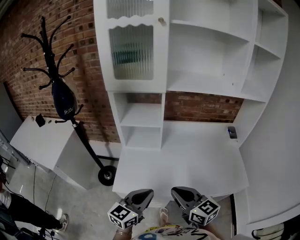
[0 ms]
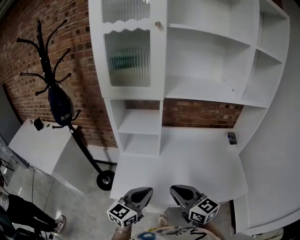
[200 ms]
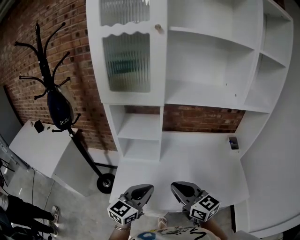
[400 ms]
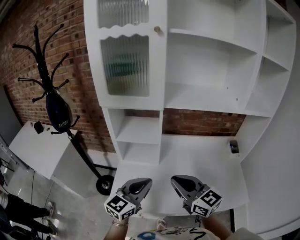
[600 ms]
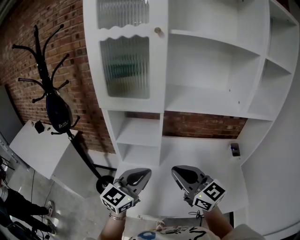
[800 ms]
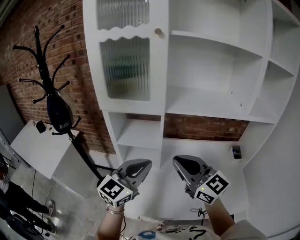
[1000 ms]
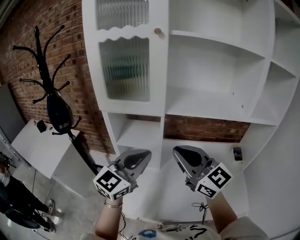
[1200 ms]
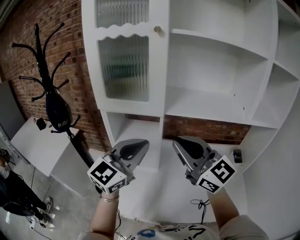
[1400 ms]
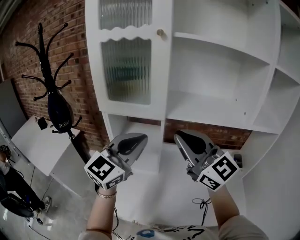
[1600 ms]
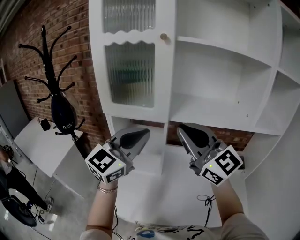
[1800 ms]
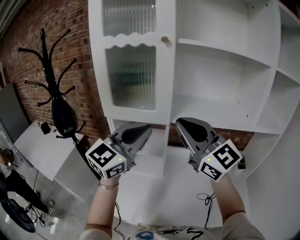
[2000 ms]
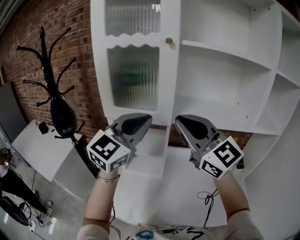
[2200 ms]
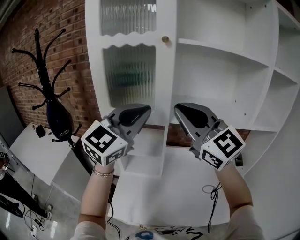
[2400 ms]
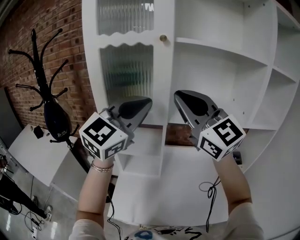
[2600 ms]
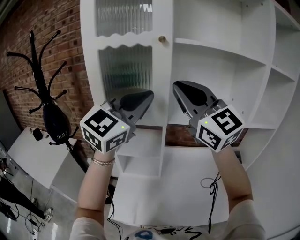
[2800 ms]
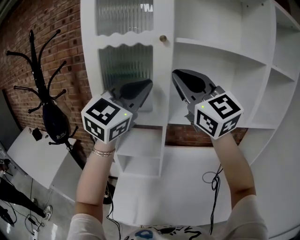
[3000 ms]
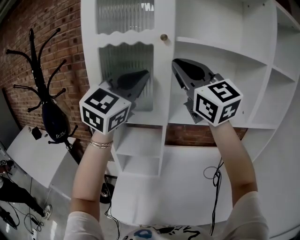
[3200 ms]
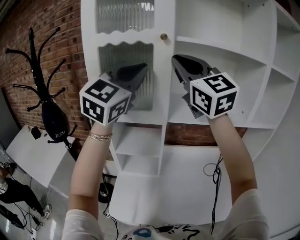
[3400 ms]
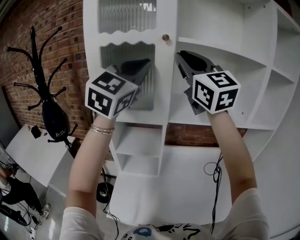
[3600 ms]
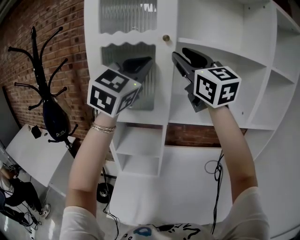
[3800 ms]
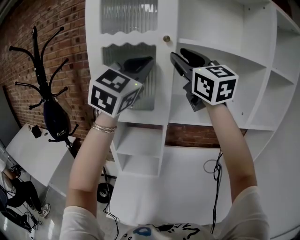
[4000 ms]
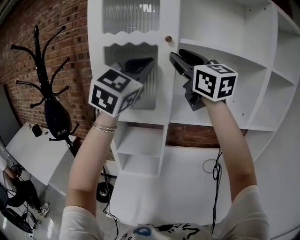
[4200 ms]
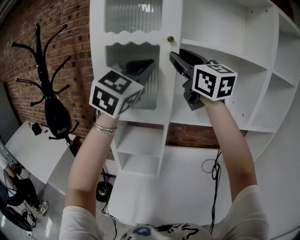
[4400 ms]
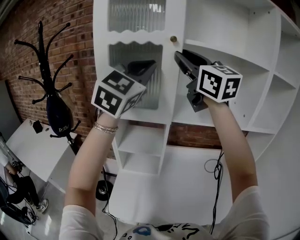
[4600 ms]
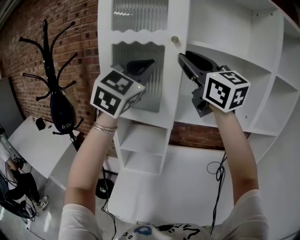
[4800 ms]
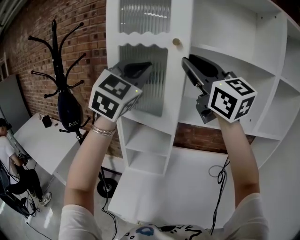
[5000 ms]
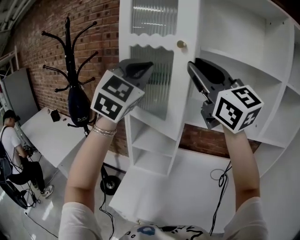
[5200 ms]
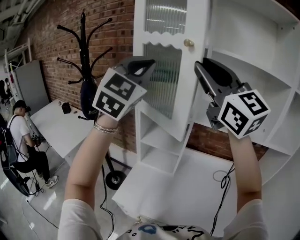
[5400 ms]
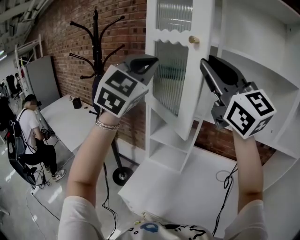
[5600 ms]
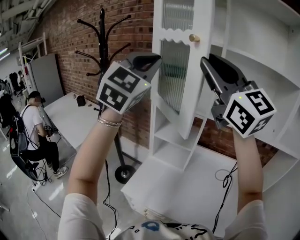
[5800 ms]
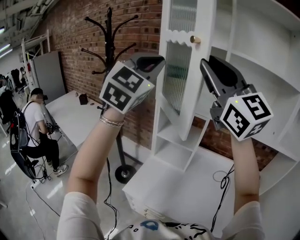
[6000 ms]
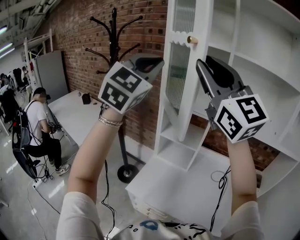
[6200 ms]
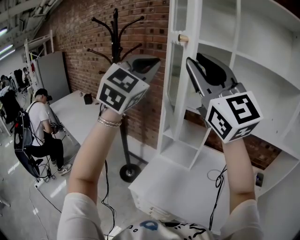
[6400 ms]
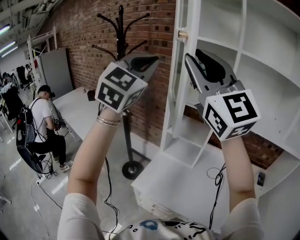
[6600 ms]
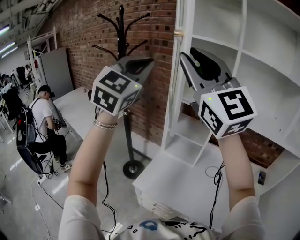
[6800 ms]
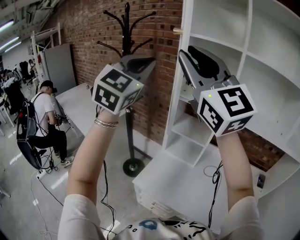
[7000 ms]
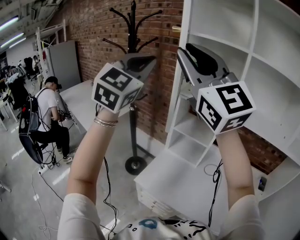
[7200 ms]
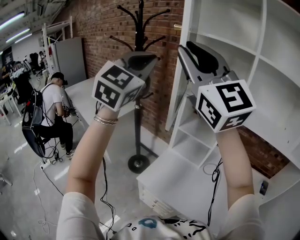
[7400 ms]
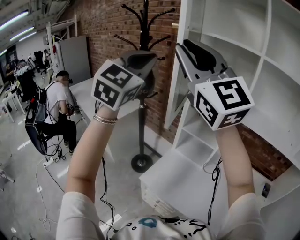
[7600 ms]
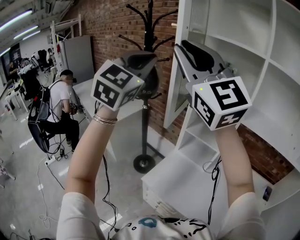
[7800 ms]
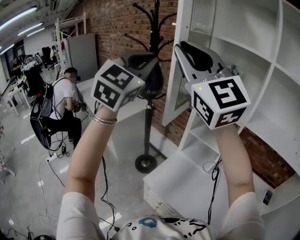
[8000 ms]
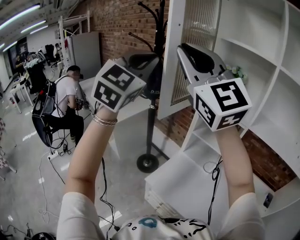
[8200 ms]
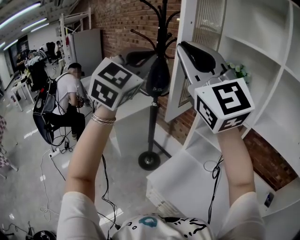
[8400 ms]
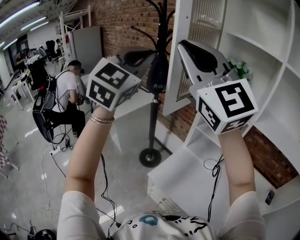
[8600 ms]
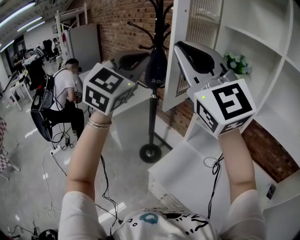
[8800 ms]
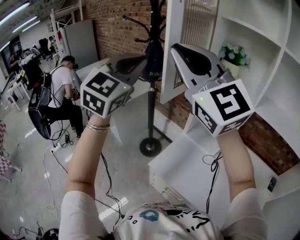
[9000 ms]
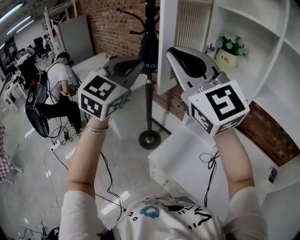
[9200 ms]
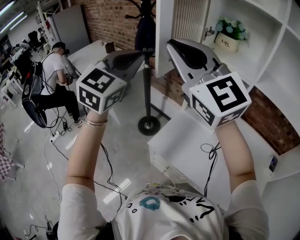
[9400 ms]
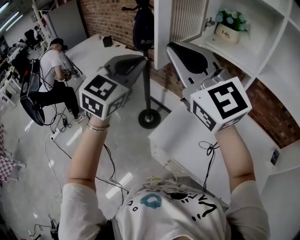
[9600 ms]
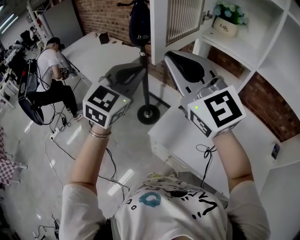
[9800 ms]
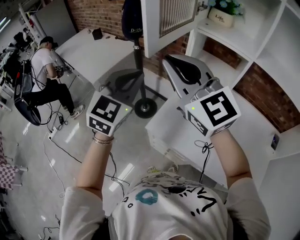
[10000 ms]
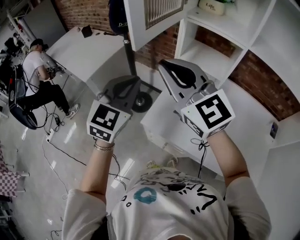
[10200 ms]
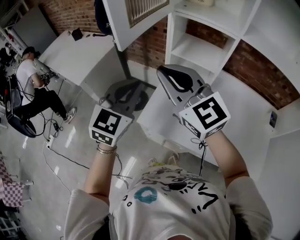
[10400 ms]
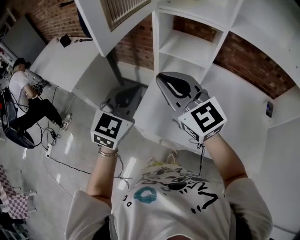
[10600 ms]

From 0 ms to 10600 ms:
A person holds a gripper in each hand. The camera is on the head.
From 0 ms to 1600 ms: The right gripper shifts roughly 35 cm upward and forward, and swivels some 40 degrees. The left gripper moves forward and upward, some 35 cm, and rotates about 30 degrees.
From 1600 ms to 3000 ms: The two grippers go roughly 20 cm upward and forward.
From 3000 ms to 4600 ms: The left gripper shifts by approximately 5 cm; the right gripper goes about 5 cm forward, and opens.
From 4600 ms to 6000 ms: The right gripper heads backward and to the left, covering roughly 20 cm, and swivels about 20 degrees. The left gripper heads to the left and backward, covering some 15 cm, and changes its angle by approximately 20 degrees.
From 6000 ms to 7600 ms: Both grippers move to the left, approximately 15 cm.
From 7600 ms to 9000 ms: Both grippers travel together downward and to the left, roughly 10 cm.
From 9000 ms to 10600 ms: Both grippers move downward and to the right, about 30 cm. The right gripper turns by approximately 30 degrees; the left gripper turns by some 30 degrees.

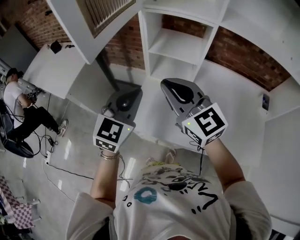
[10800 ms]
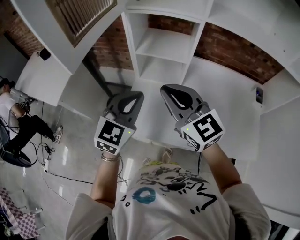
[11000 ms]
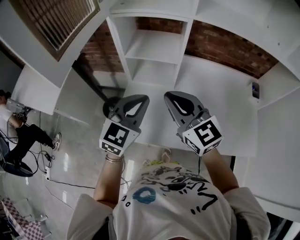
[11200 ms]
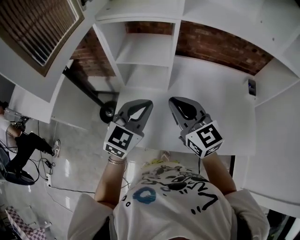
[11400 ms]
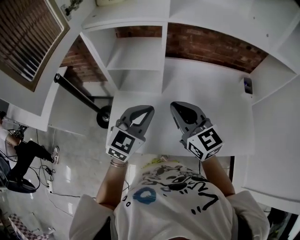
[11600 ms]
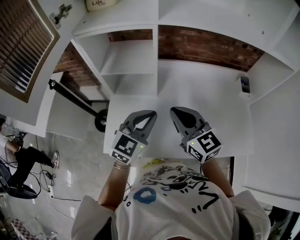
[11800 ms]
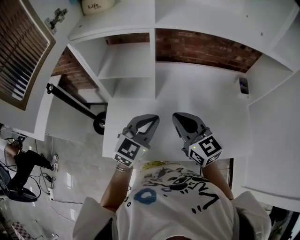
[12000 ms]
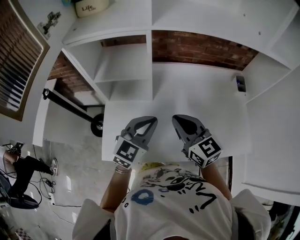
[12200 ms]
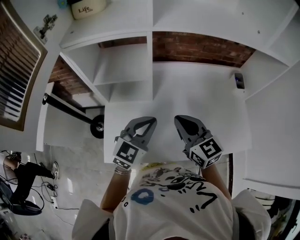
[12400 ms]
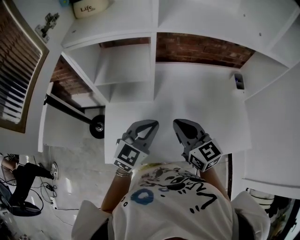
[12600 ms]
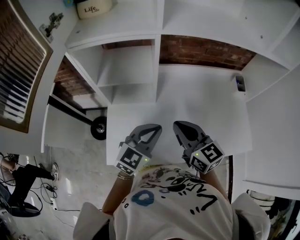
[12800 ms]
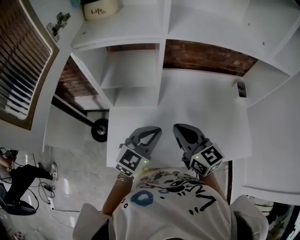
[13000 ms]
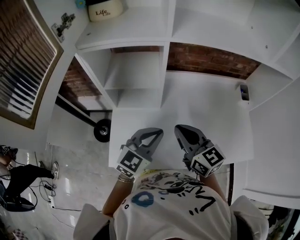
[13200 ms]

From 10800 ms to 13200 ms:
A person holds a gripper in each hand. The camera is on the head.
From 10800 ms to 12000 ms: The two grippers go some 25 cm to the right and downward. The right gripper changes its angle by some 30 degrees; the left gripper swivels about 30 degrees.
From 12000 ms to 13200 ms: There are only small adjustments of the grippers.

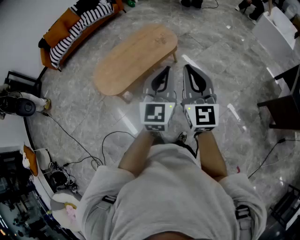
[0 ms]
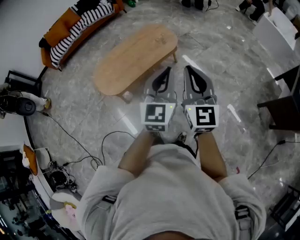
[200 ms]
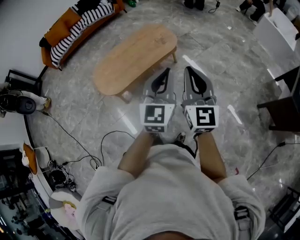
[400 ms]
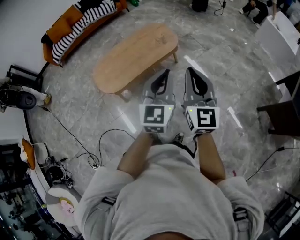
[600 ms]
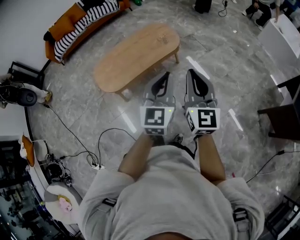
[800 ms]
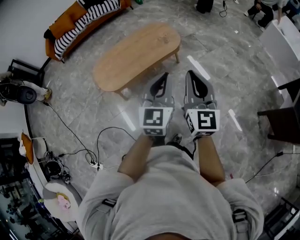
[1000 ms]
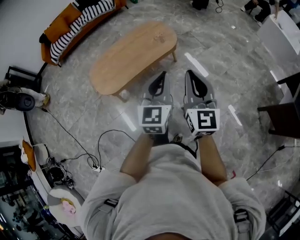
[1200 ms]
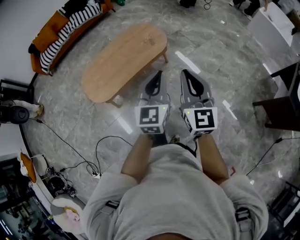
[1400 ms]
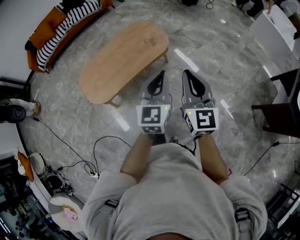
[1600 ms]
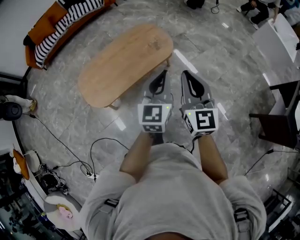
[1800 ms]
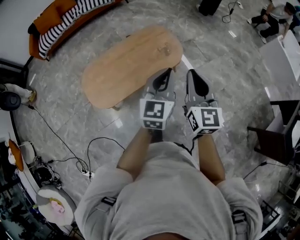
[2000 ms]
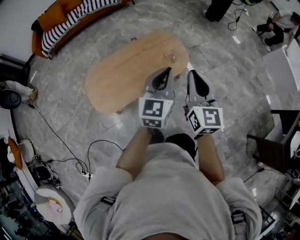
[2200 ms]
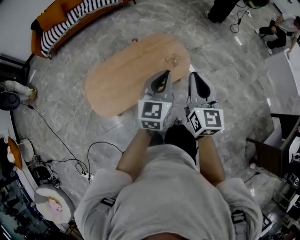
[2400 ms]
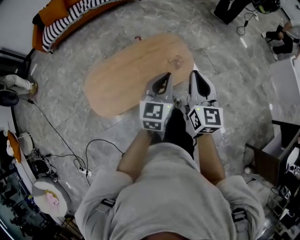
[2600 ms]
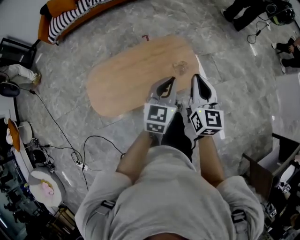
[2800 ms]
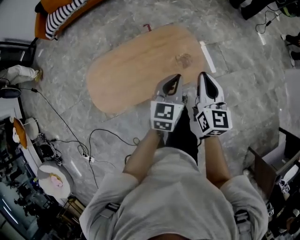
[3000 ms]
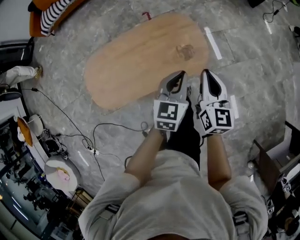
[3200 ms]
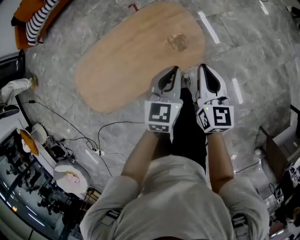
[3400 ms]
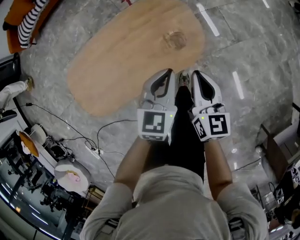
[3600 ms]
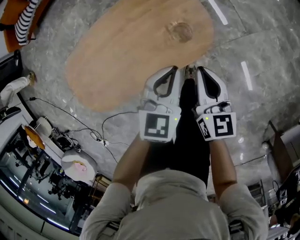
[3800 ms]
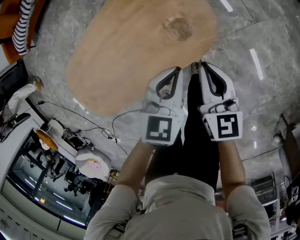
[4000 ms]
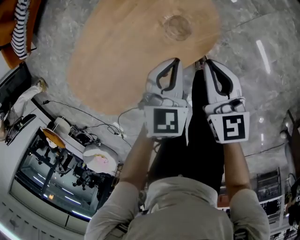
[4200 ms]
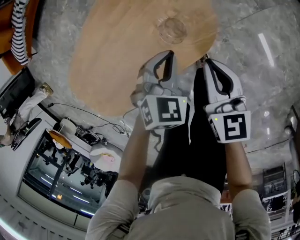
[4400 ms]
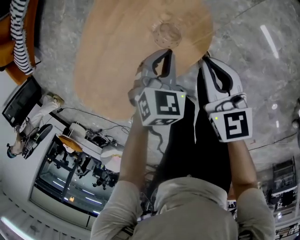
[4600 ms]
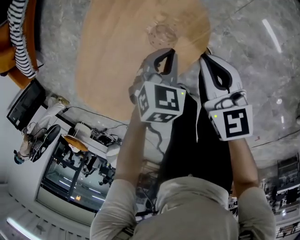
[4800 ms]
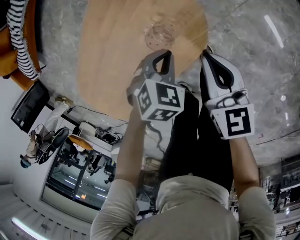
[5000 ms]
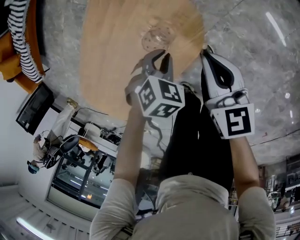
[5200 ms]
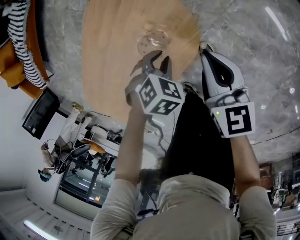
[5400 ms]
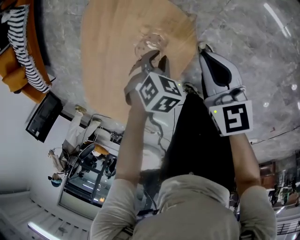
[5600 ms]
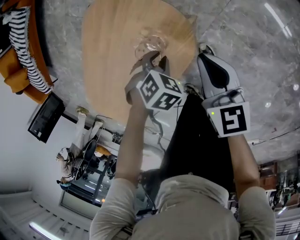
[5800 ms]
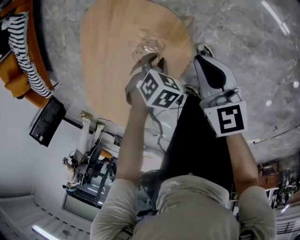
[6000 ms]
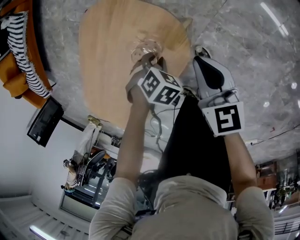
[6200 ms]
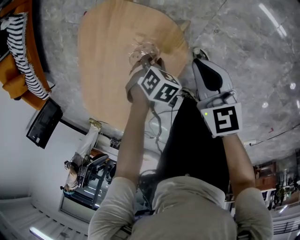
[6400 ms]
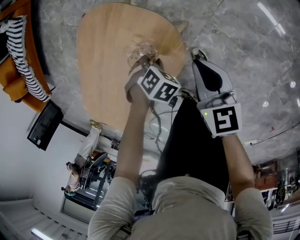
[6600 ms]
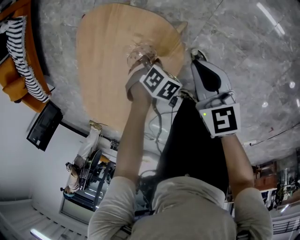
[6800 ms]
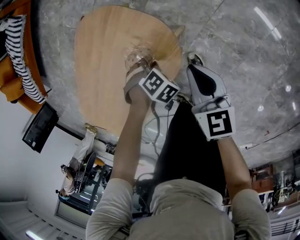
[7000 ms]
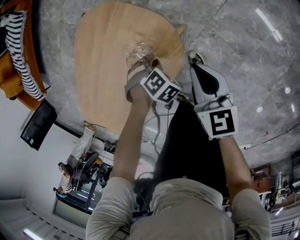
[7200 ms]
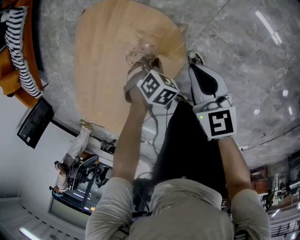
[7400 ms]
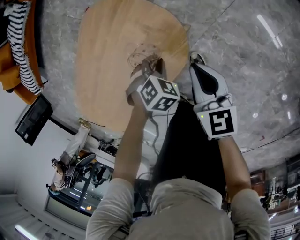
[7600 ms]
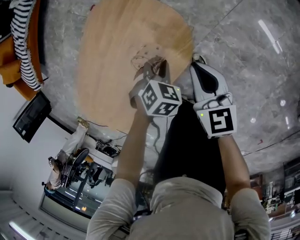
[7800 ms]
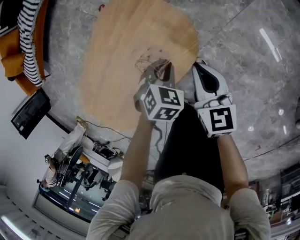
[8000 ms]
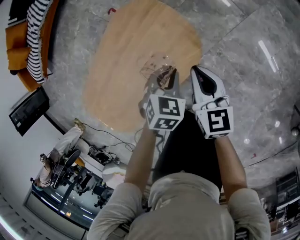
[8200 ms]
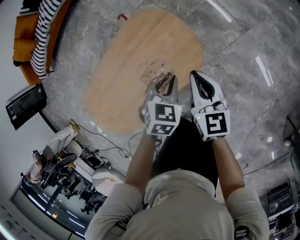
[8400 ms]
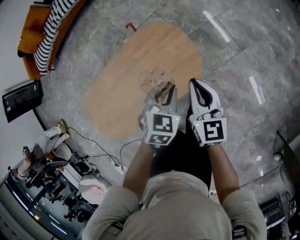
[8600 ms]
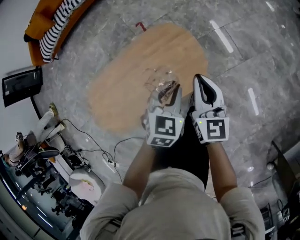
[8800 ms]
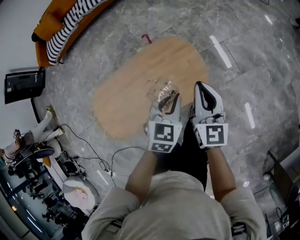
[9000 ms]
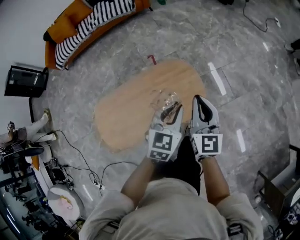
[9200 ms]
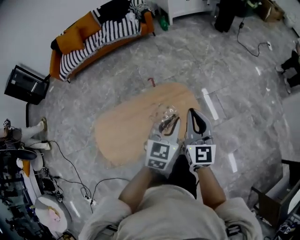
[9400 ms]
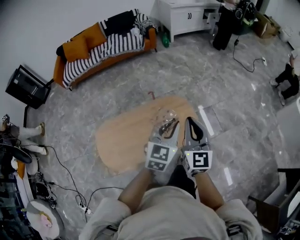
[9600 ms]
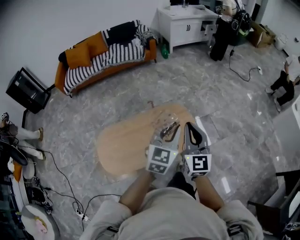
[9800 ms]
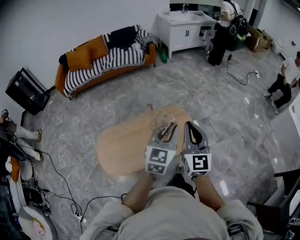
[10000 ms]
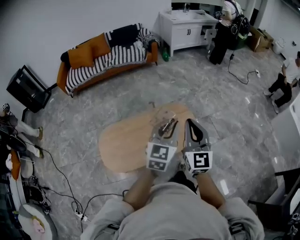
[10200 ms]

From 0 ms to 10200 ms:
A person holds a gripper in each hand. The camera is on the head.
From 0 ms to 1400 ms: The left gripper travels forward and downward by about 10 cm, while the right gripper goes approximately 10 cm forward and to the right.
From 1400 ms to 3000 ms: The two grippers travel together, forward, some 50 cm. The left gripper swivels approximately 20 degrees, while the right gripper turns by about 20 degrees.
From 3000 ms to 4400 ms: The right gripper is displaced downward by some 35 cm, and rotates some 20 degrees. Meanwhile the left gripper shifts roughly 35 cm downward and forward, and points its fingers some 30 degrees further downward.
From 4400 ms to 5800 ms: The right gripper moves some 10 cm. Meanwhile the left gripper heads downward, covering some 10 cm, and tilts its fingers roughly 30 degrees downward.
From 5800 ms to 7200 ms: The left gripper travels downward by about 5 cm.
From 7200 ms to 8800 ms: The two grippers go about 35 cm upward. The right gripper rotates about 30 degrees. The left gripper angles its fingers upward, by roughly 40 degrees.
From 8800 ms to 10200 ms: The two grippers go some 35 cm upward, backward and to the left. The right gripper swivels approximately 30 degrees. Meanwhile the left gripper angles its fingers upward, by some 40 degrees.
